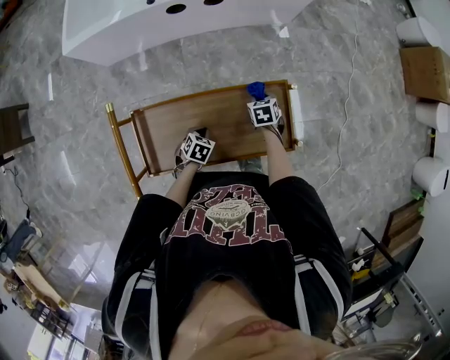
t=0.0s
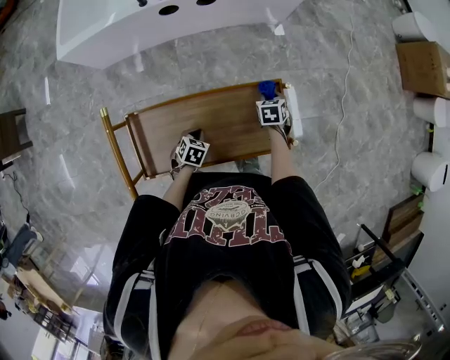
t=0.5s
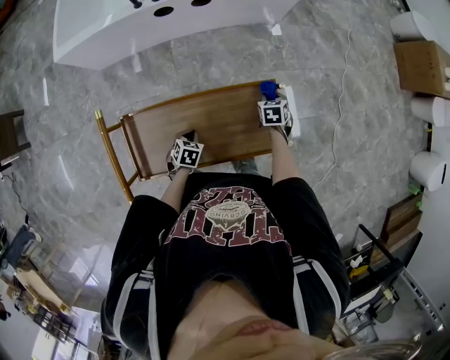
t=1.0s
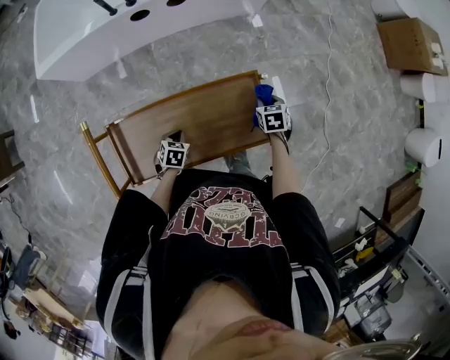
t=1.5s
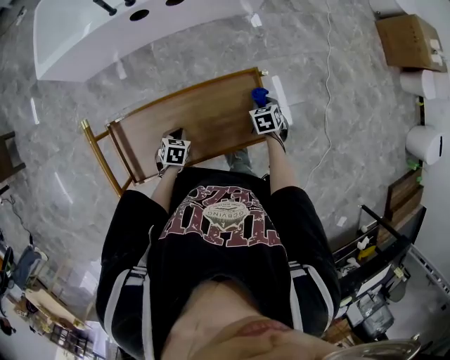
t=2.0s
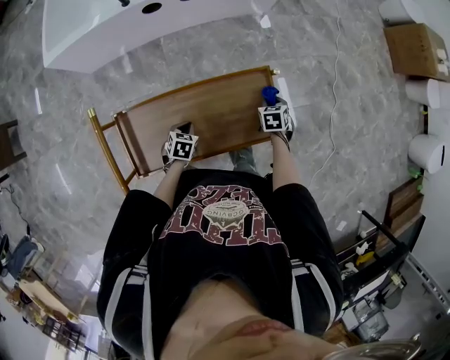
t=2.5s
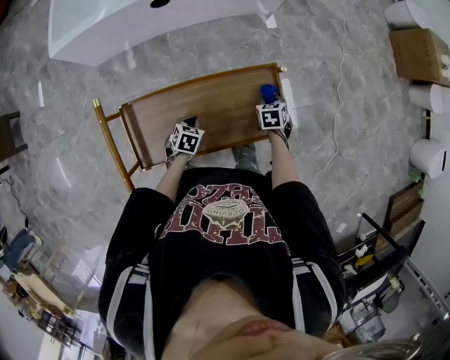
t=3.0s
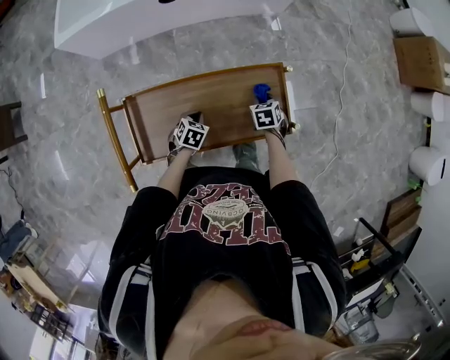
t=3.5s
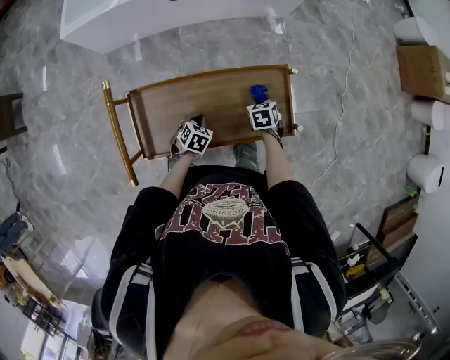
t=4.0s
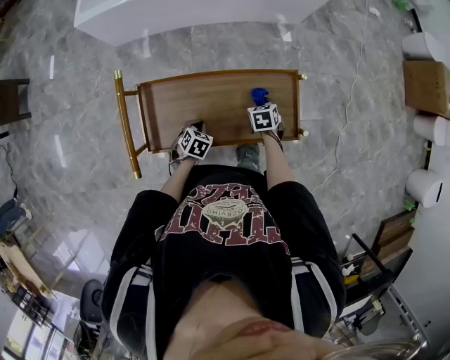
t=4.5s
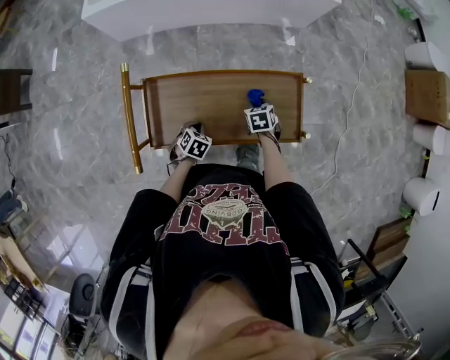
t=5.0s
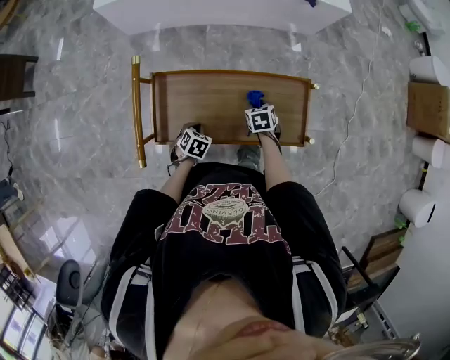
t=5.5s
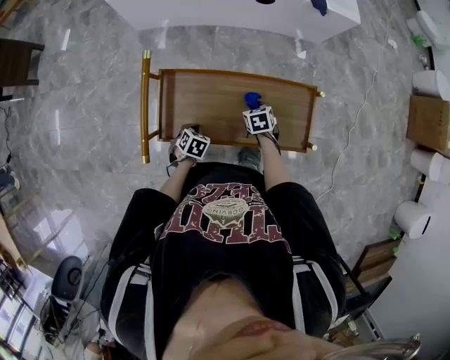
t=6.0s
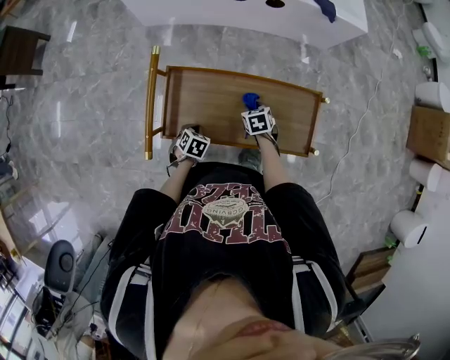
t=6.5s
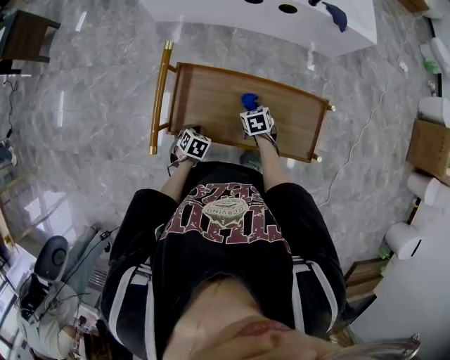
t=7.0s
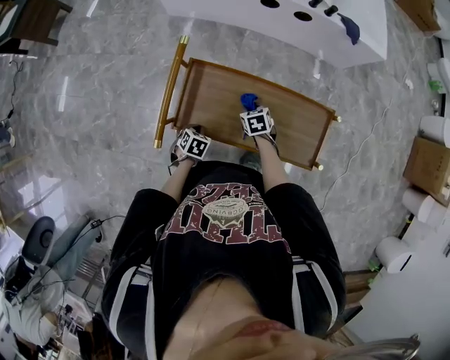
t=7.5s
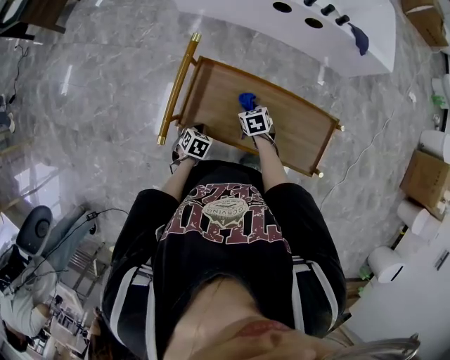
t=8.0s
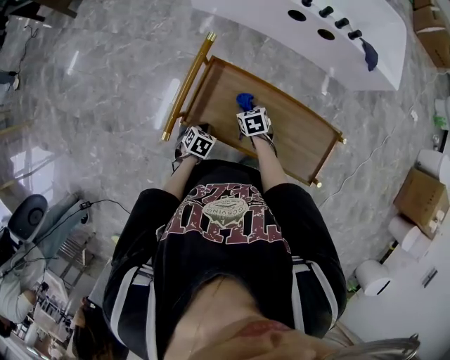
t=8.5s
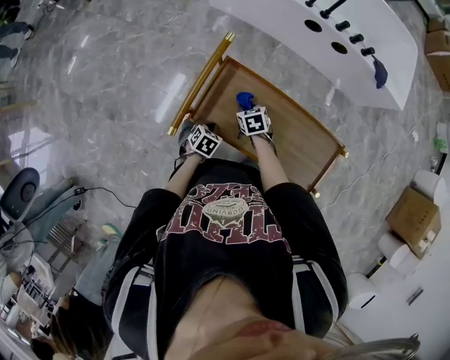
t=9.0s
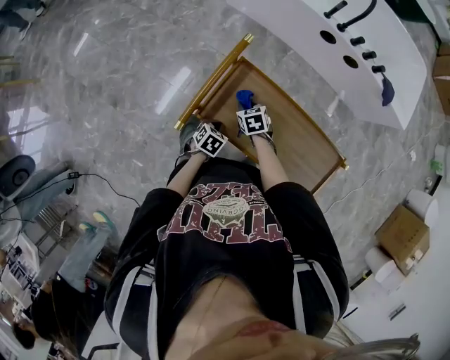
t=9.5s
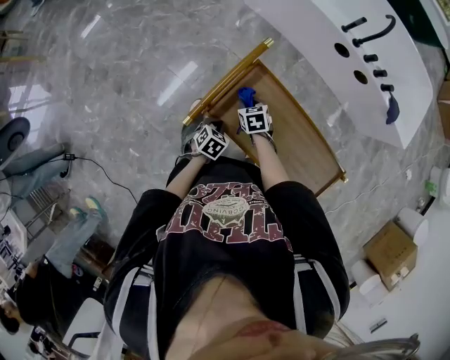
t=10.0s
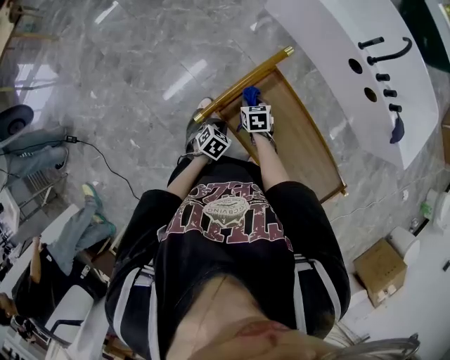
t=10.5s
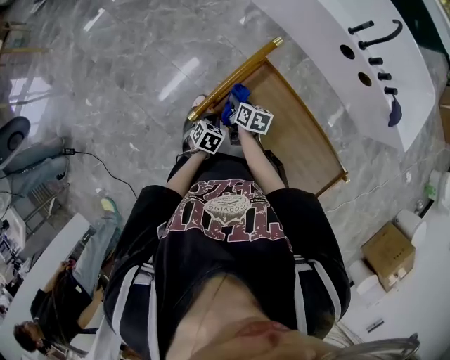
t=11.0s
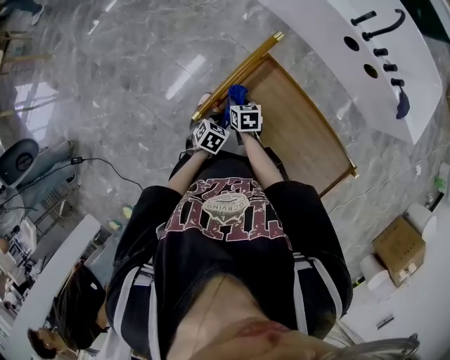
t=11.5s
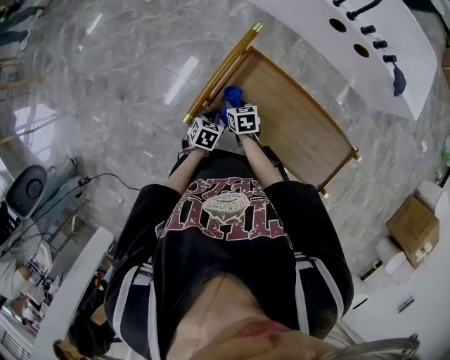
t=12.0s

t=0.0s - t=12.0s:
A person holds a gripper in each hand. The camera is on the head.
t=0.0s - t=2.0s: The right gripper moves to the right, about 15 cm.
t=2.0s - t=4.0s: The right gripper heads to the left, covering approximately 10 cm.
t=4.0s - t=6.0s: The right gripper is displaced to the left by some 15 cm. The left gripper is displaced to the left and backward by some 15 cm.
t=6.0s - t=8.0s: The left gripper goes about 5 cm to the left, while the right gripper heads to the left, covering about 15 cm.
t=8.0s - t=10.0s: The right gripper shifts some 15 cm to the left, and turns by roughly 20 degrees.
t=10.0s - t=12.0s: The right gripper shifts by approximately 5 cm.

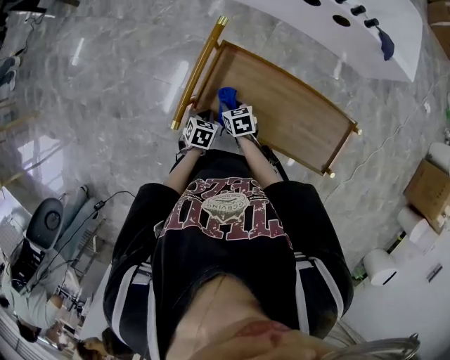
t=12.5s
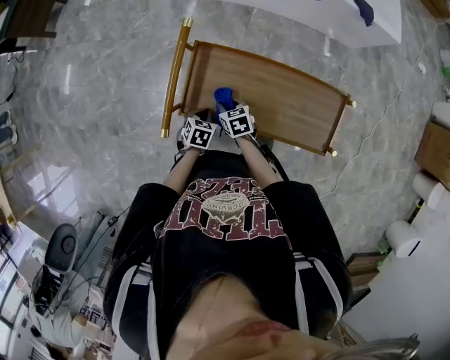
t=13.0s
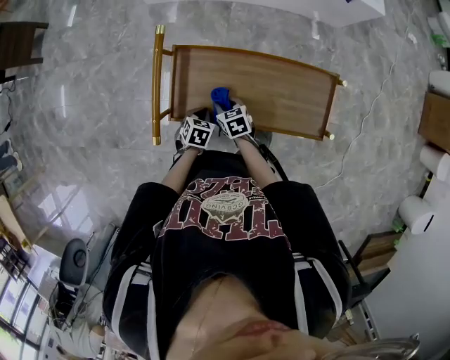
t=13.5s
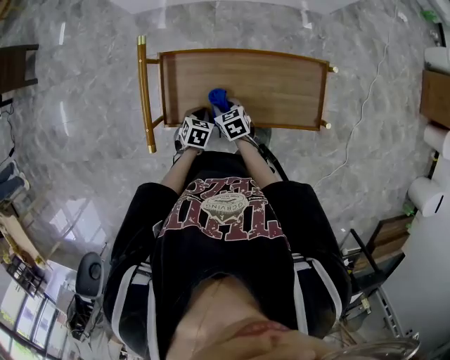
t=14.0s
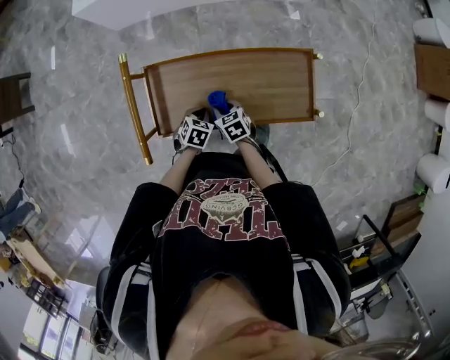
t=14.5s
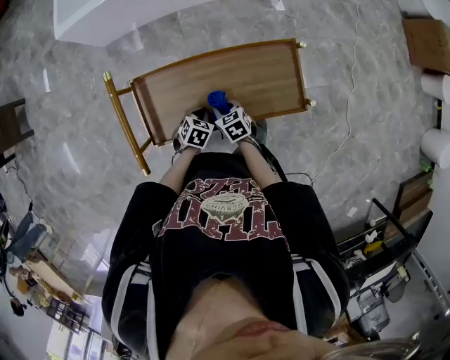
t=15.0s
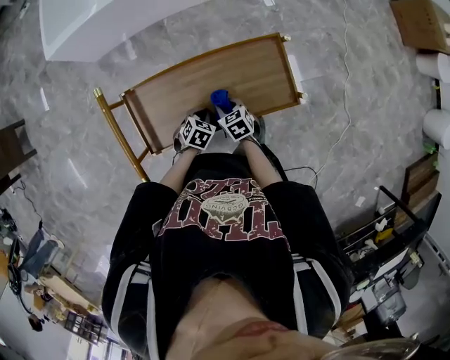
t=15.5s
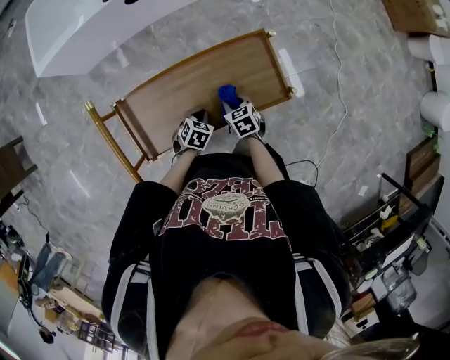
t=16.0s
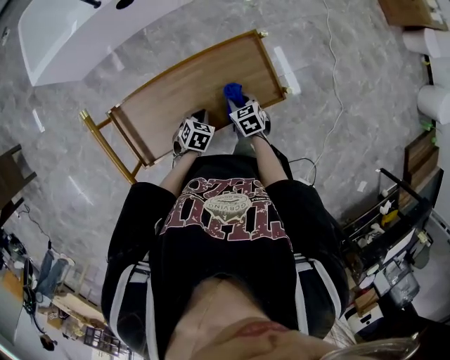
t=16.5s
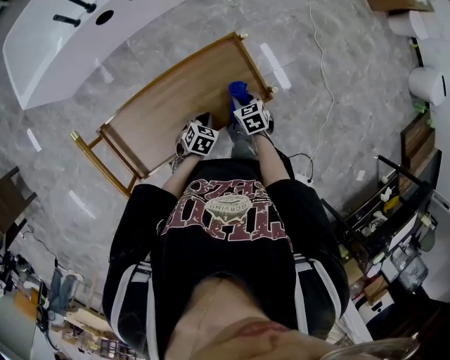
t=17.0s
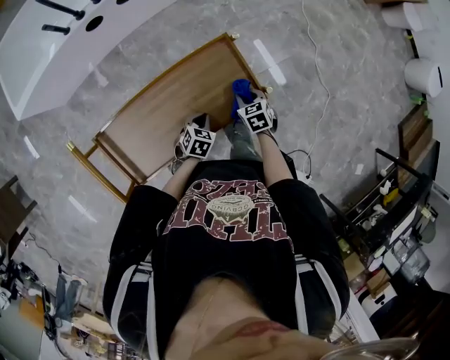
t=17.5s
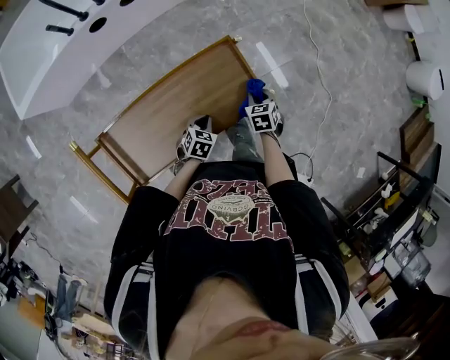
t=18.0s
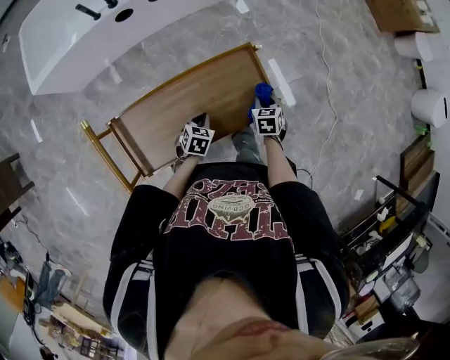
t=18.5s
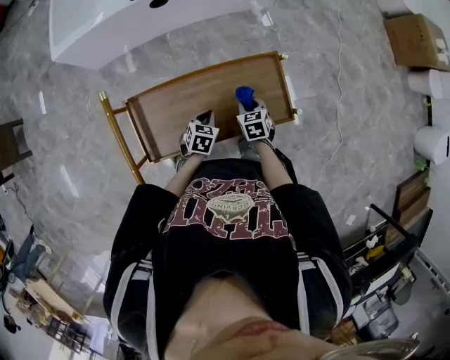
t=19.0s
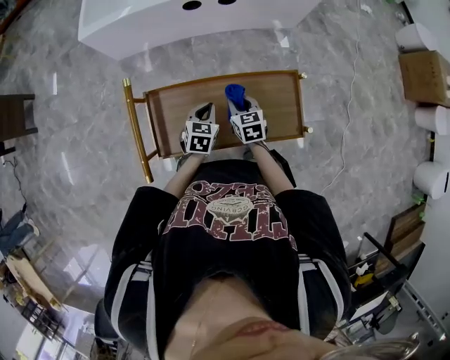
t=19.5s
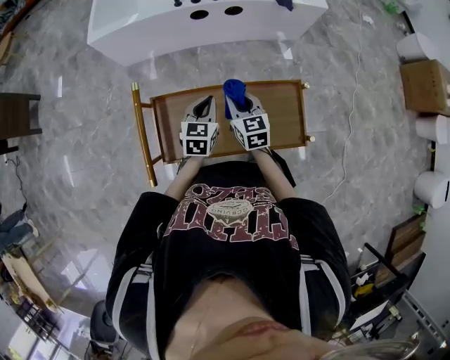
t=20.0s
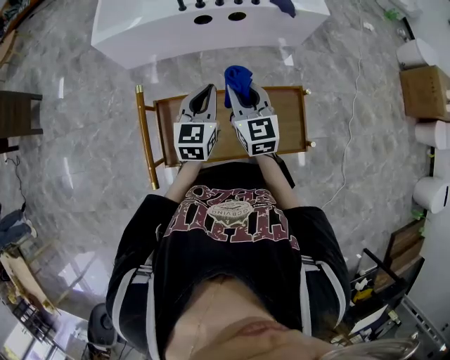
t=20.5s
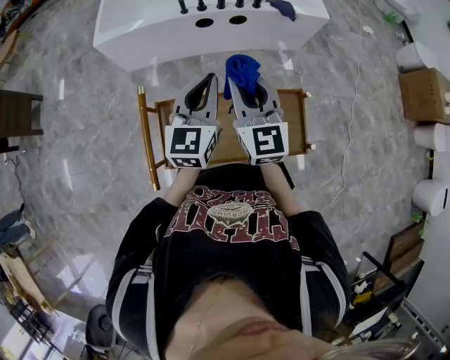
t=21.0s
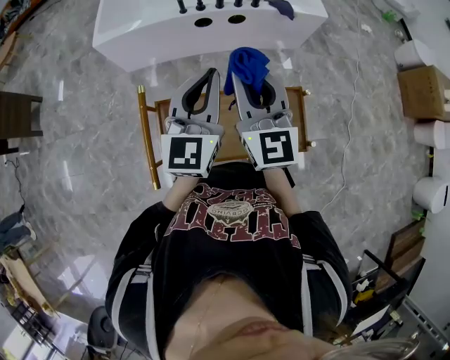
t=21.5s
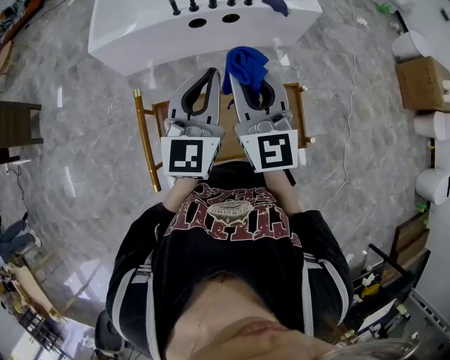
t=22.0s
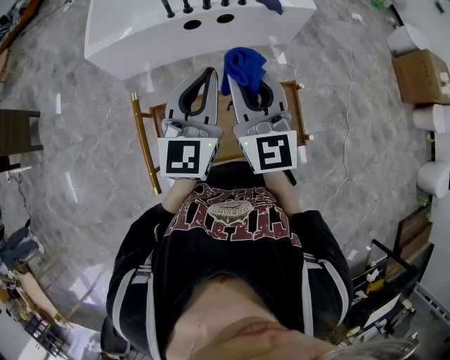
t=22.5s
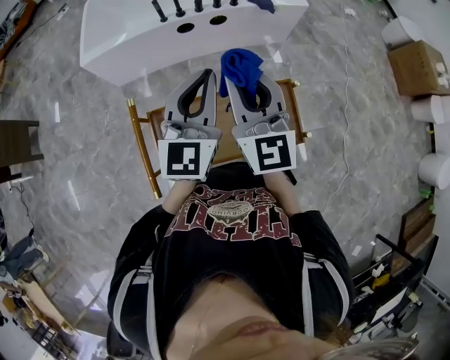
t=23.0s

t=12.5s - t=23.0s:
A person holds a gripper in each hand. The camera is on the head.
t=12.5s - t=14.5s: The left gripper moves roughly 15 cm, and turns by about 30 degrees; the right gripper changes place by about 15 cm.
t=14.5s - t=16.5s: The left gripper is displaced to the right by about 15 cm. Meanwhile the right gripper travels to the right by about 20 cm, and swivels some 20 degrees.
t=19.0s - t=21.0s: The left gripper shifts roughly 35 cm upward, and angles its fingers upward, by about 50 degrees. The right gripper heads upward and to the left, covering roughly 40 cm, and tilts its fingers roughly 50 degrees upward.
t=21.0s - t=23.0s: The two grippers go roughly 5 cm upward.

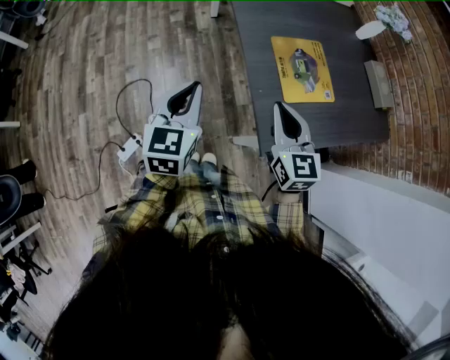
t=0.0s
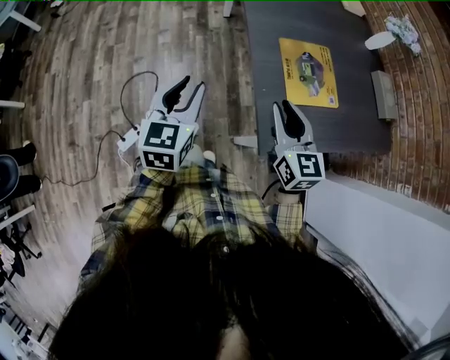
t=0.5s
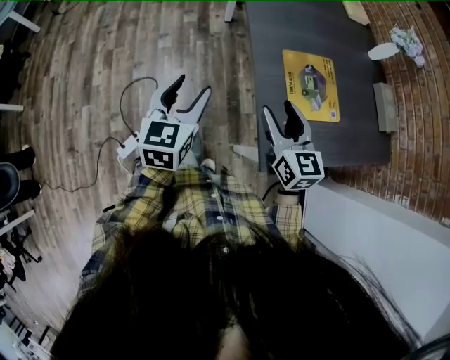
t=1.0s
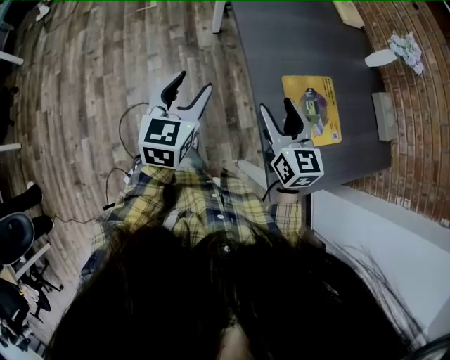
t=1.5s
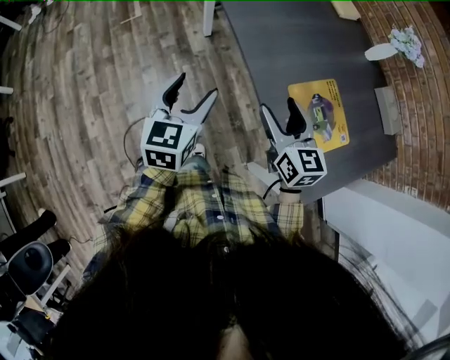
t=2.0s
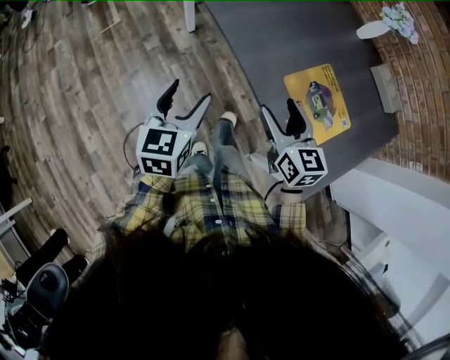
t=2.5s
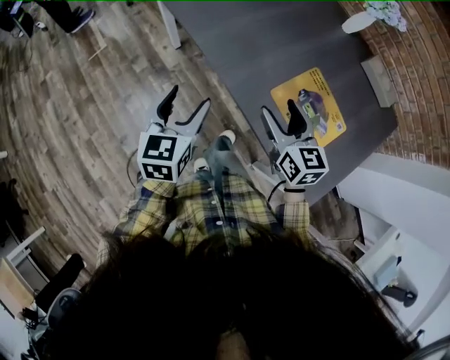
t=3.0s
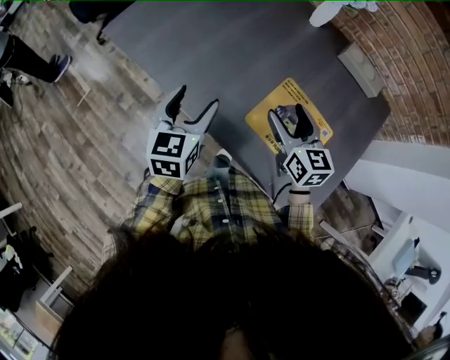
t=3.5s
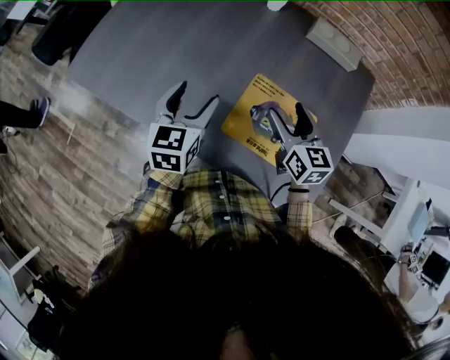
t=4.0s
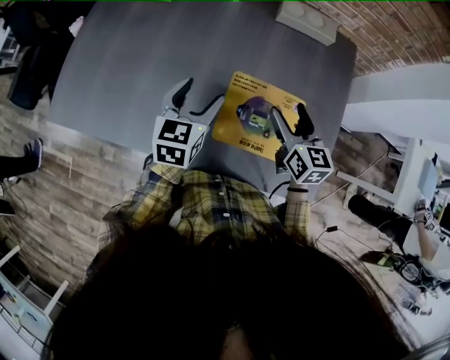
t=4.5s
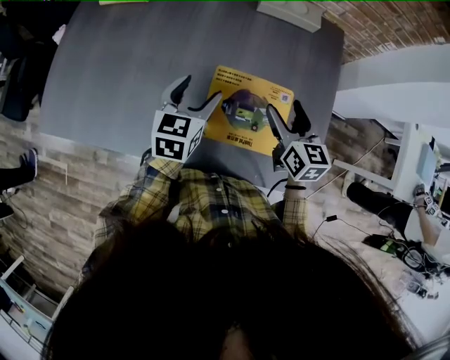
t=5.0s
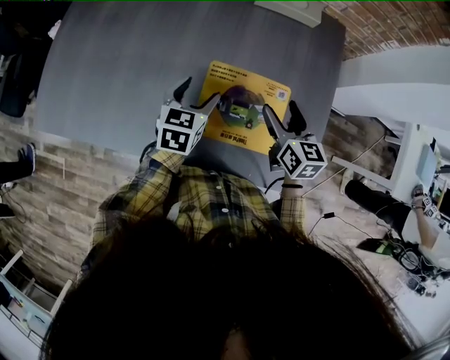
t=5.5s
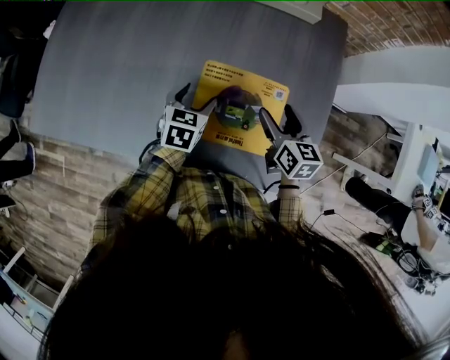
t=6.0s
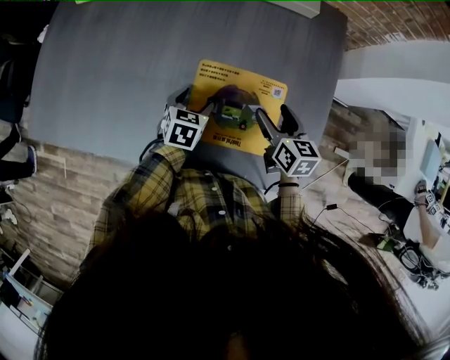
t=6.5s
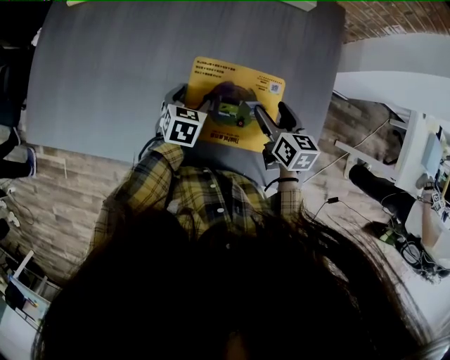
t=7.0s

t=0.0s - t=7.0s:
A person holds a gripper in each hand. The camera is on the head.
t=0.0s - t=2.0s: The two grippers go about 25 cm forward. The right gripper opens up. Meanwhile the left gripper opens up.
t=2.0s - t=3.5s: The left gripper changes place by approximately 25 cm, and turns by about 20 degrees, while the right gripper changes place by approximately 25 cm, and changes its angle by roughly 30 degrees.
t=3.5s - t=5.0s: The right gripper changes place by roughly 20 cm, and rotates about 30 degrees; the left gripper moves roughly 25 cm, and turns by approximately 40 degrees.
t=5.0s - t=7.0s: The left gripper travels downward by roughly 20 cm, and turns by roughly 30 degrees, while the right gripper goes approximately 15 cm downward and to the right.
